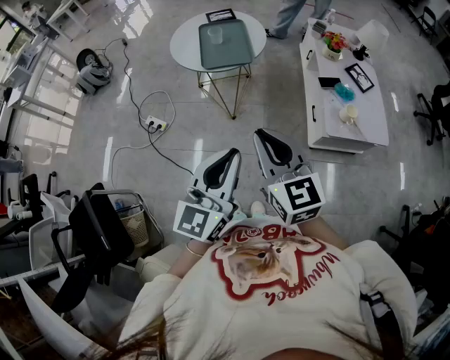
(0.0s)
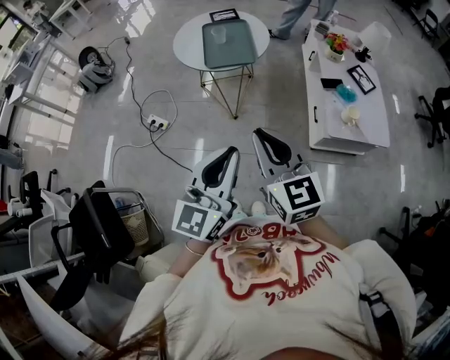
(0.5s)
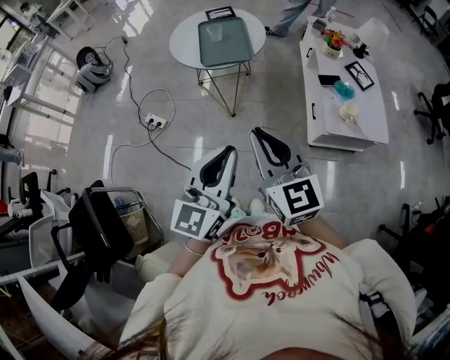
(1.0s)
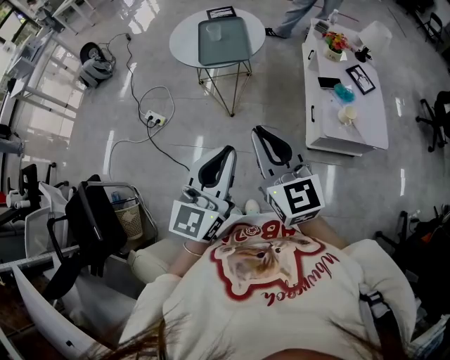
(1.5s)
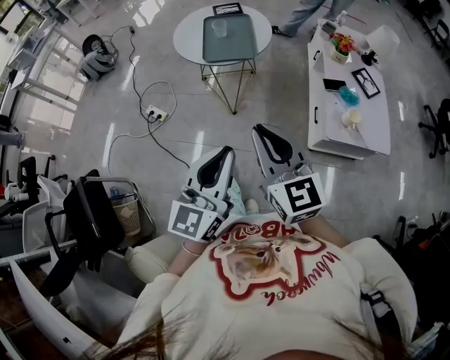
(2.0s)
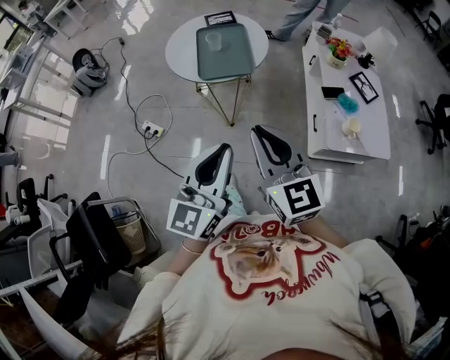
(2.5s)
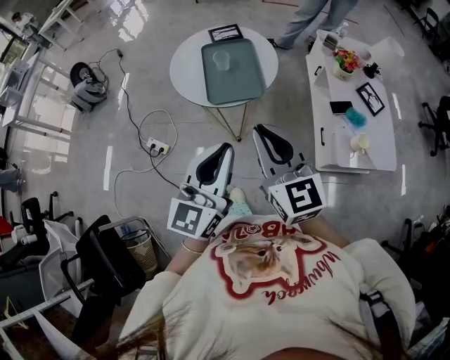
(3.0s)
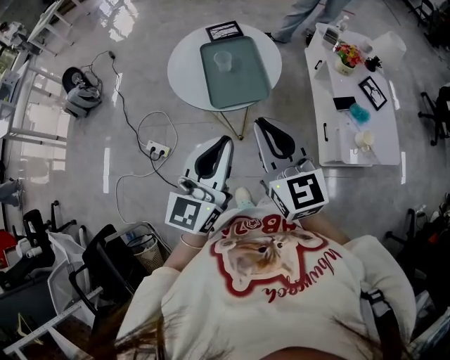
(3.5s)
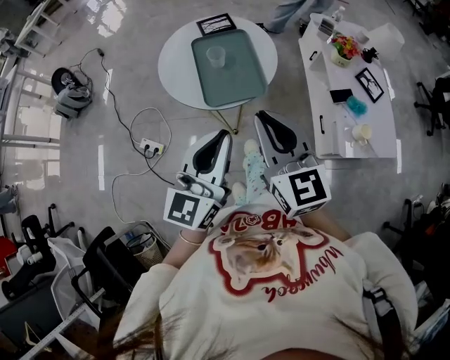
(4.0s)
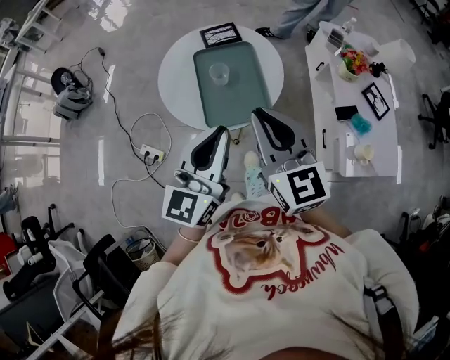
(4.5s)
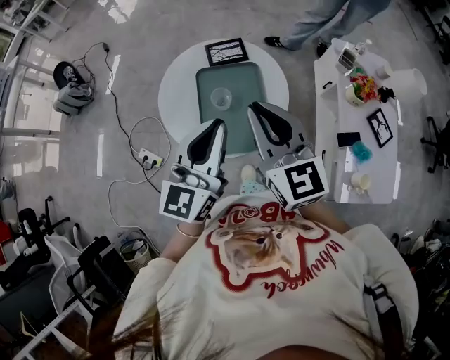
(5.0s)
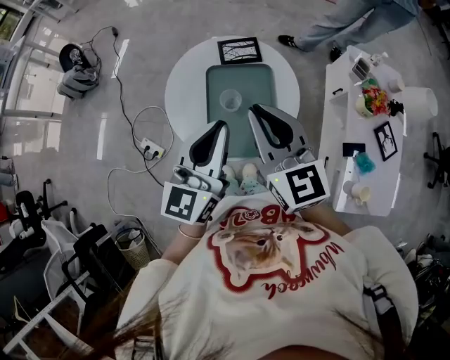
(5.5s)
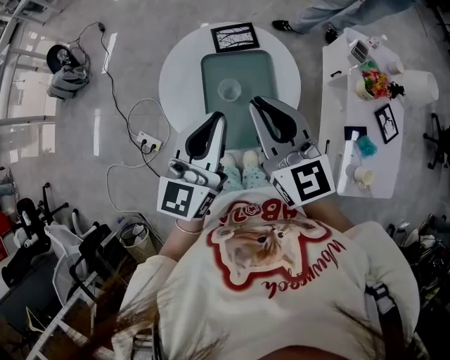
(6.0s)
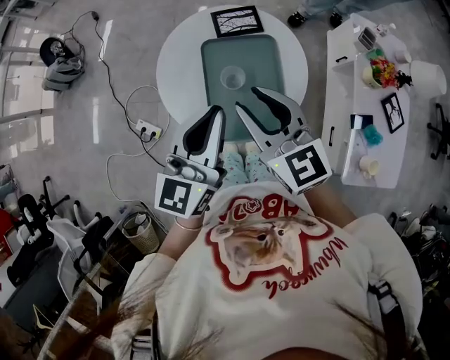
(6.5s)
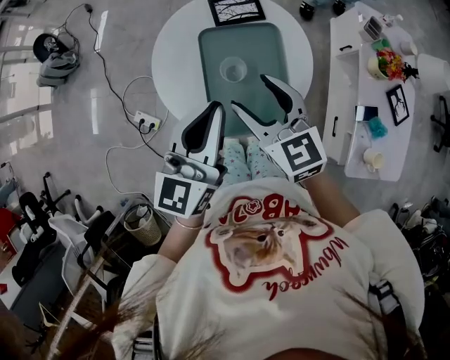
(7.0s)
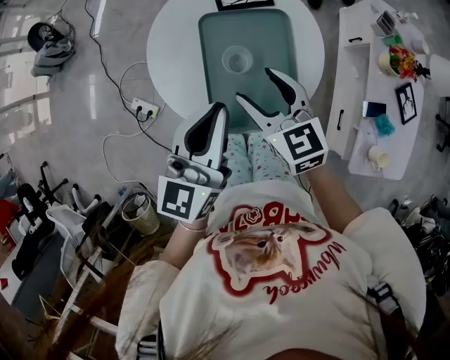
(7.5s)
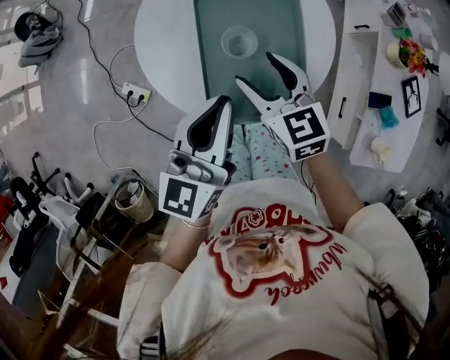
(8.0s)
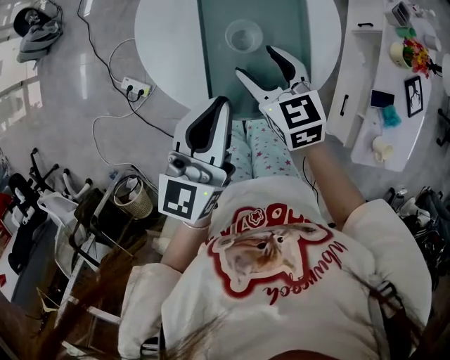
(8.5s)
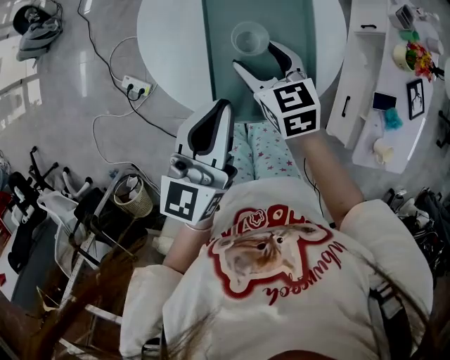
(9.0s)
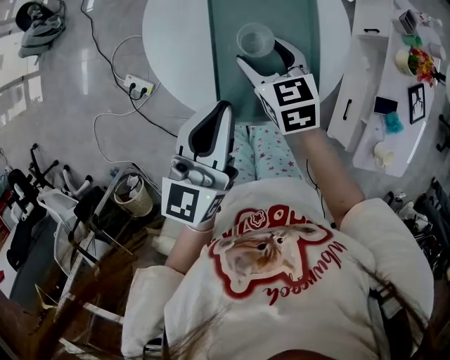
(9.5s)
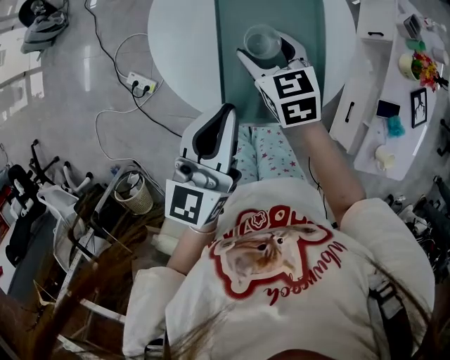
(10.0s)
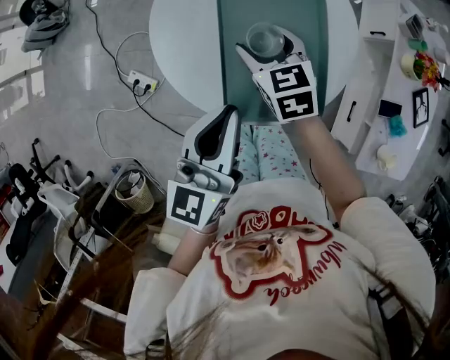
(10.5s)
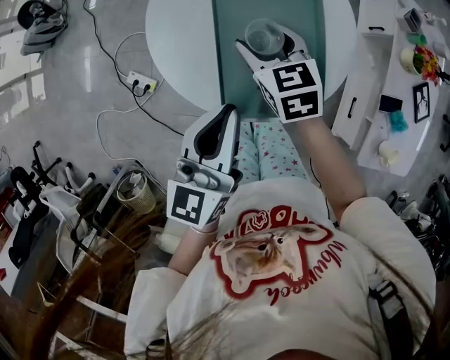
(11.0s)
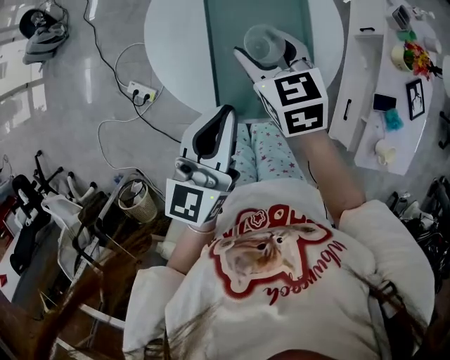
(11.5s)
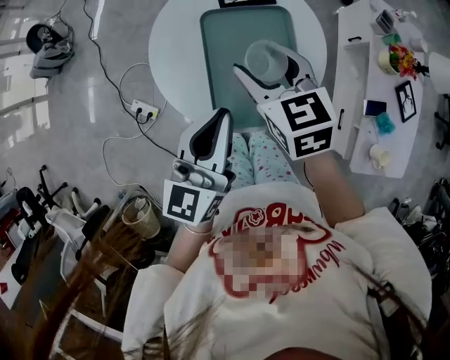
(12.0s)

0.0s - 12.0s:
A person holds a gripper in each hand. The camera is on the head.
0.0s - 2.0s: The grippers make only small movements.
2.0s - 4.0s: The grippers both shift forward by about 25 cm.
4.0s - 6.0s: Both grippers move forward, roughly 25 cm.
6.0s - 8.0s: The left gripper shifts some 10 cm downward; the right gripper moves downward, approximately 25 cm, turns by about 20 degrees, and opens up.
8.0s - 10.0s: The right gripper goes some 10 cm forward and downward.
10.0s - 12.0s: The left gripper changes place by approximately 5 cm, while the right gripper goes about 15 cm upward.

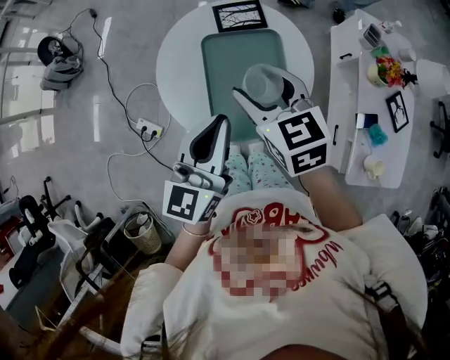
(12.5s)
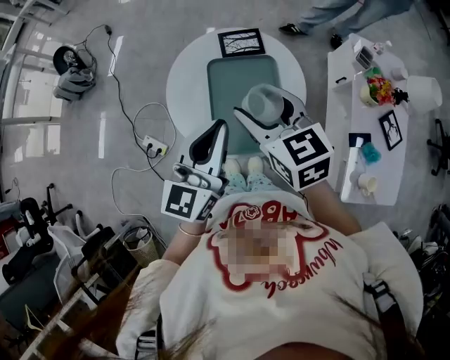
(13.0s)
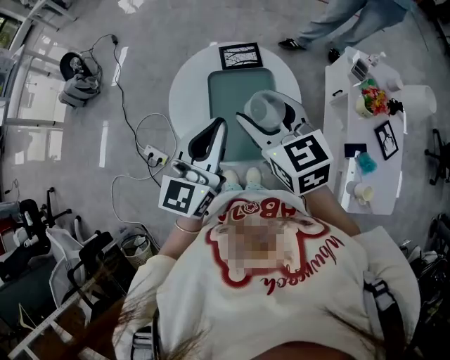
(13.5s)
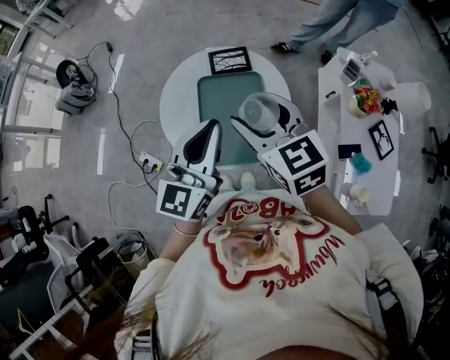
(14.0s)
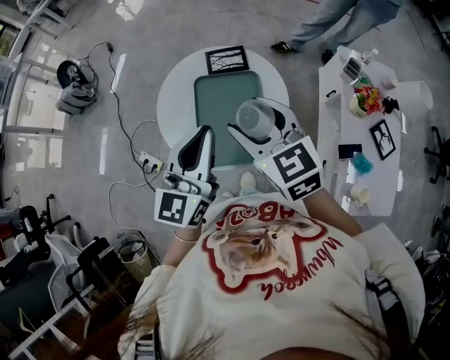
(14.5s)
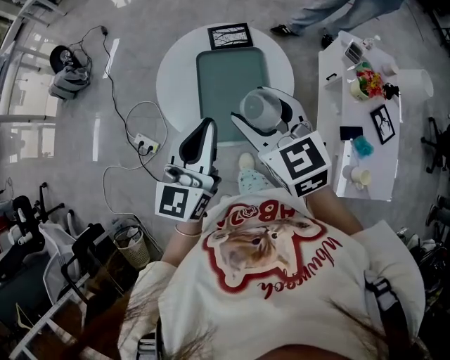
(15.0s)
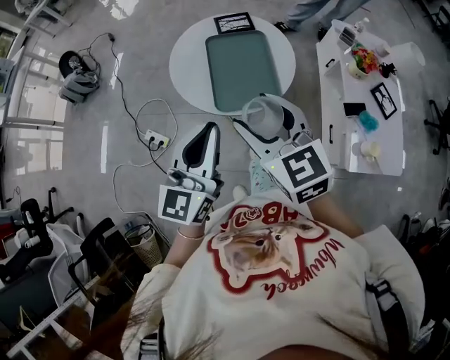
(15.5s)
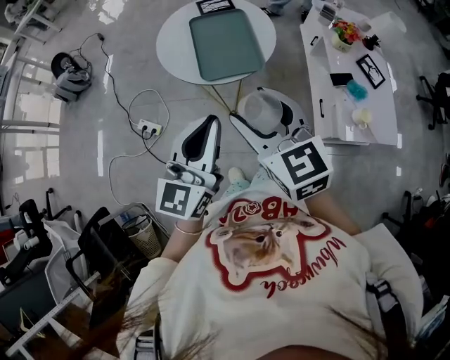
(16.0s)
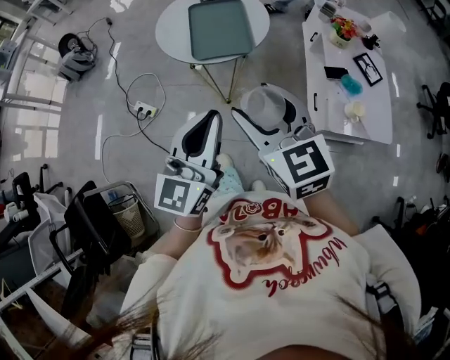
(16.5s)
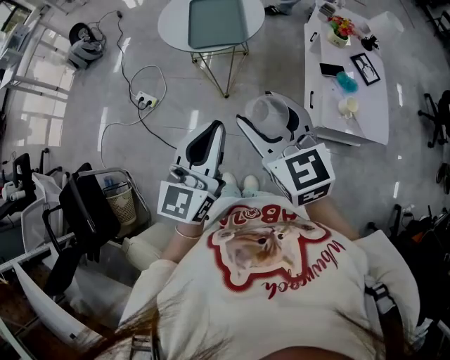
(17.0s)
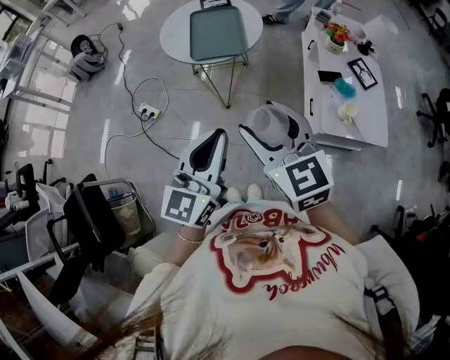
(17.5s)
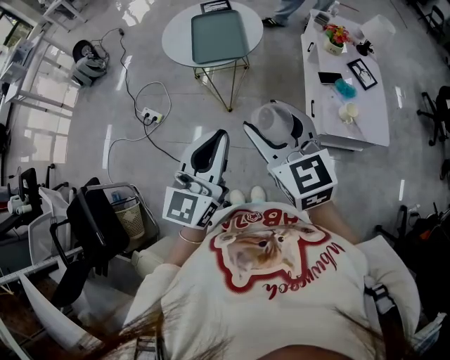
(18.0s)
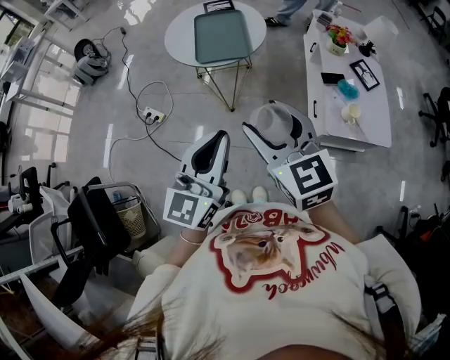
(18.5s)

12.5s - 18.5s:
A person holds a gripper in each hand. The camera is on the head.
12.5s - 14.5s: The two grippers go about 5 cm upward.
14.5s - 16.5s: The two grippers go roughly 40 cm backward.
16.5s - 18.5s: Both grippers travel together backward, approximately 10 cm.

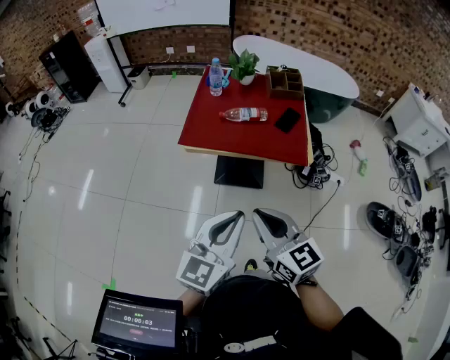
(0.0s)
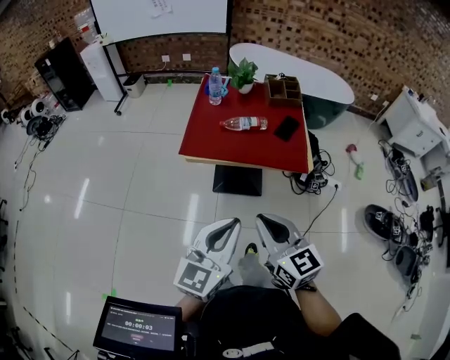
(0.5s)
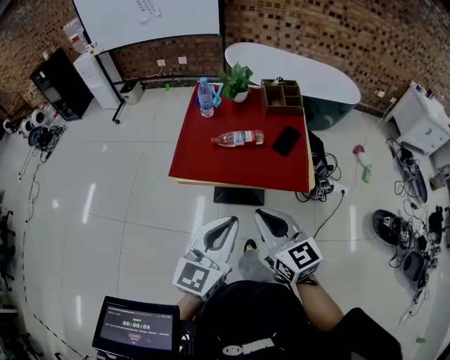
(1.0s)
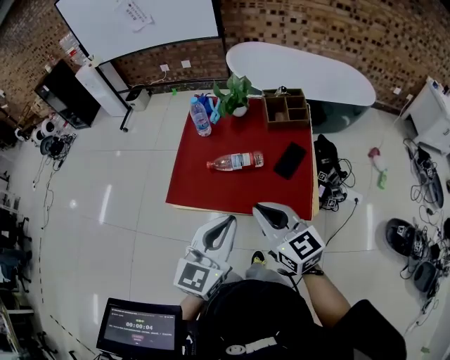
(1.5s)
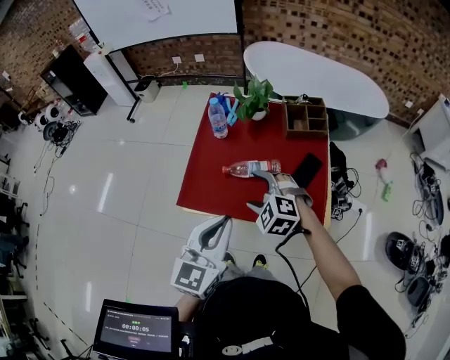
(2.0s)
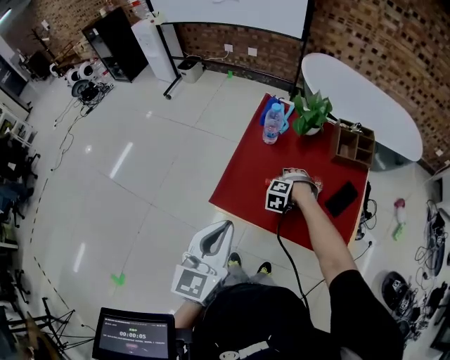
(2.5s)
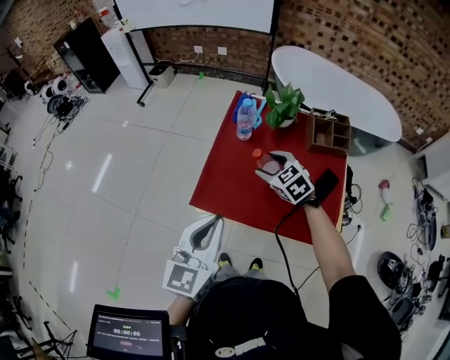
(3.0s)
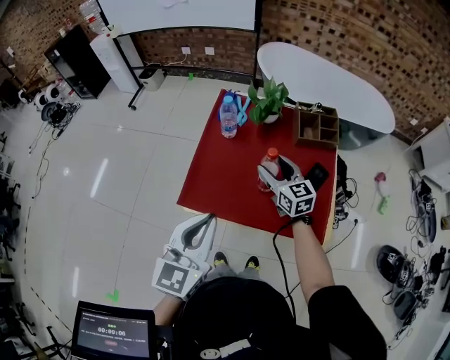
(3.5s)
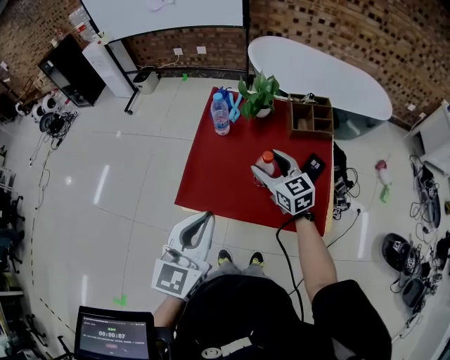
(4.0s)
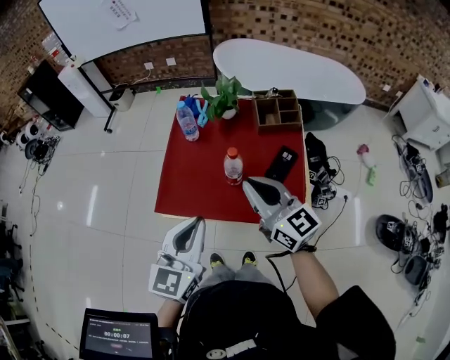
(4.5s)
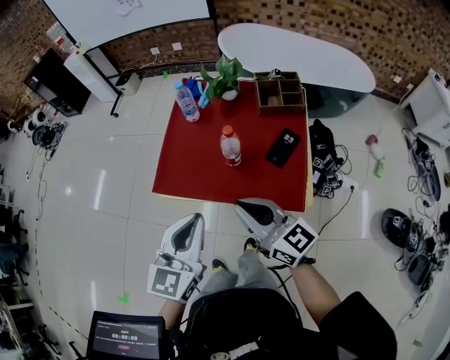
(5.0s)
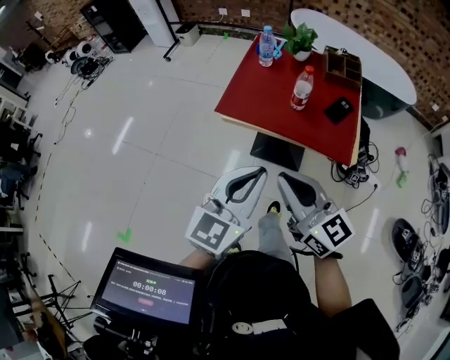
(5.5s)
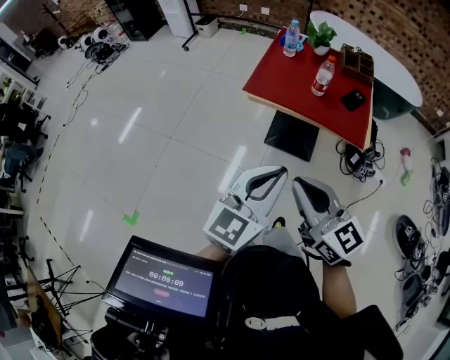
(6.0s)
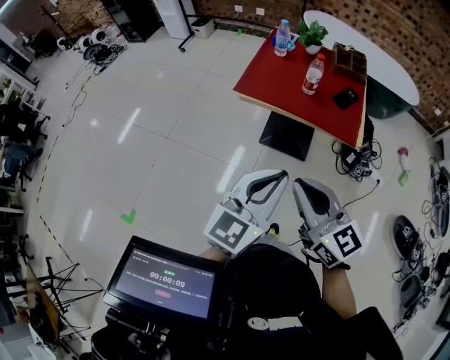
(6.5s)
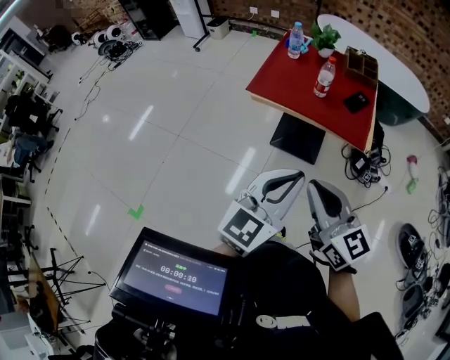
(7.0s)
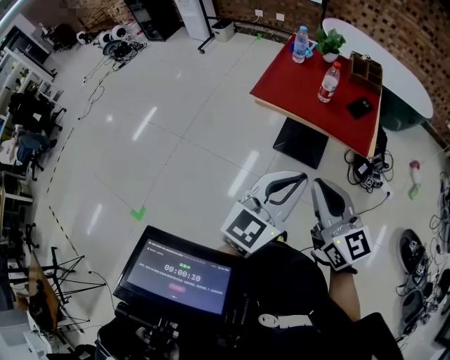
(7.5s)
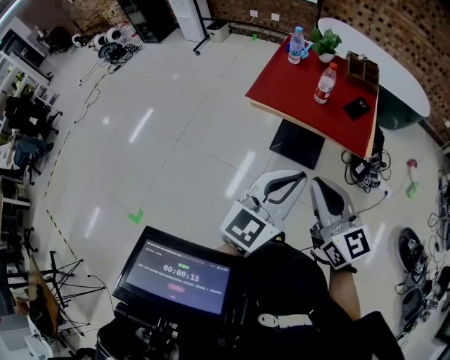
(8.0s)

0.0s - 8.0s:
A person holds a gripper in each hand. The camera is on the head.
0.0s - 2.0s: Both grippers move forward, roughly 35 cm. The right gripper tips its fingers downward by approximately 40 degrees, and opens its fingers.
2.0s - 4.0s: The right gripper travels forward by approximately 10 cm, goes downward and returns, about 15 cm each way, and rotates around the line of its fingers by approximately 50 degrees, clockwise from behind.
4.0s - 6.0s: The two grippers go roughly 40 cm backward. The right gripper turns by roughly 20 degrees, and closes up.
6.0s - 8.0s: Both grippers travel together to the right, about 5 cm.

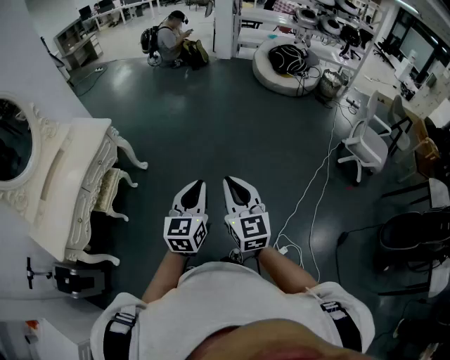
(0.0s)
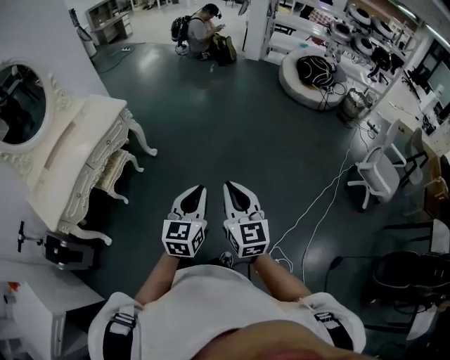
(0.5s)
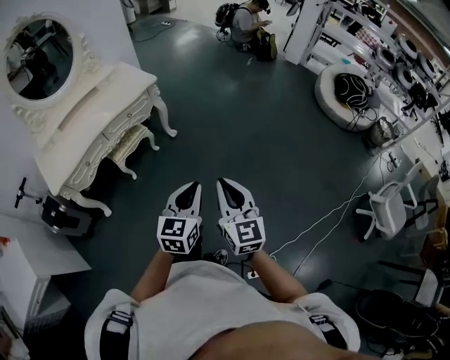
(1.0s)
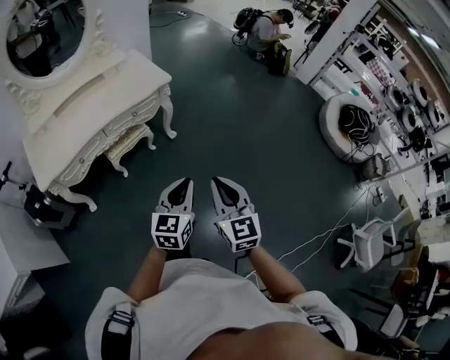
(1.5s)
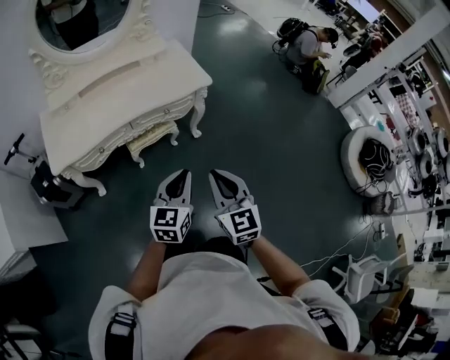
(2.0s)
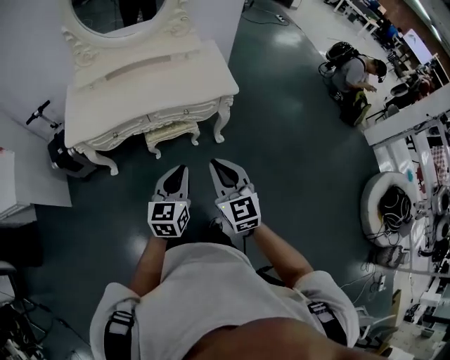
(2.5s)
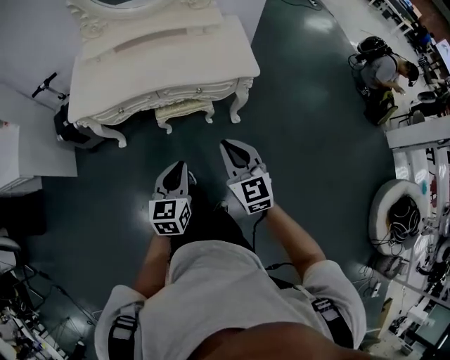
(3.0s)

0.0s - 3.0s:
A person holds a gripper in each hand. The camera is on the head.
0.0s - 1.5s: The left gripper changes place by approximately 25 cm, and swivels some 30 degrees. Meanwhile the right gripper ends up about 25 cm from where it was, and changes its angle by some 30 degrees.
1.5s - 3.0s: The left gripper changes place by some 20 cm, and turns by approximately 40 degrees, while the right gripper changes place by roughly 30 cm, and changes its angle by approximately 40 degrees.
